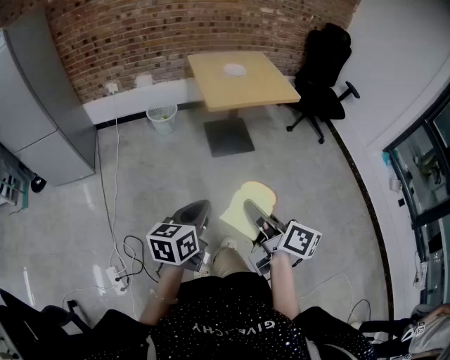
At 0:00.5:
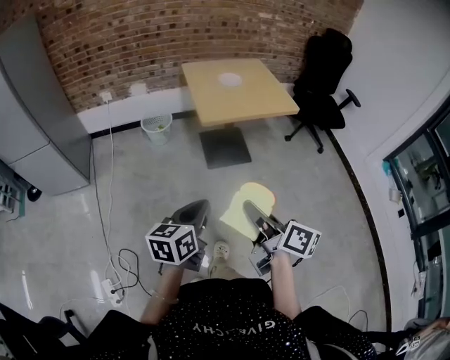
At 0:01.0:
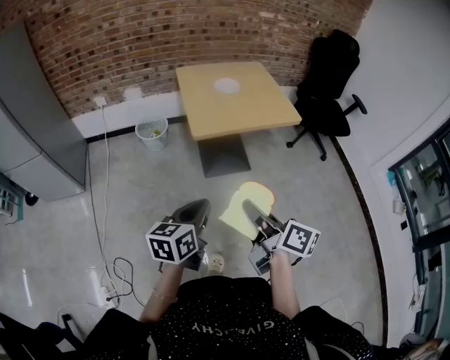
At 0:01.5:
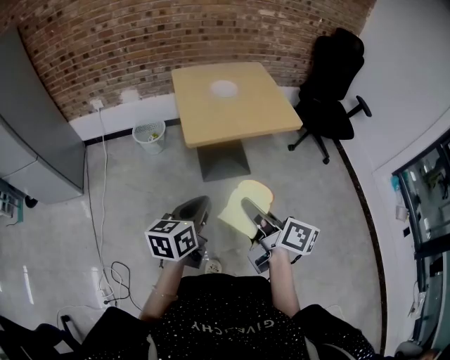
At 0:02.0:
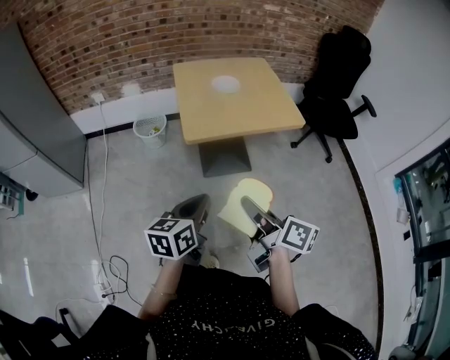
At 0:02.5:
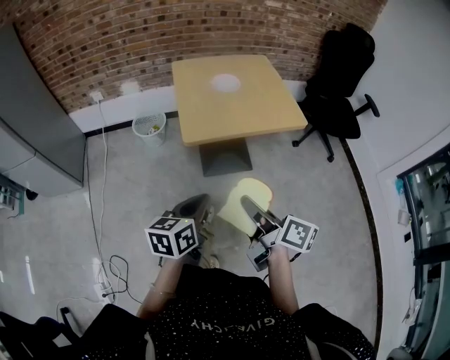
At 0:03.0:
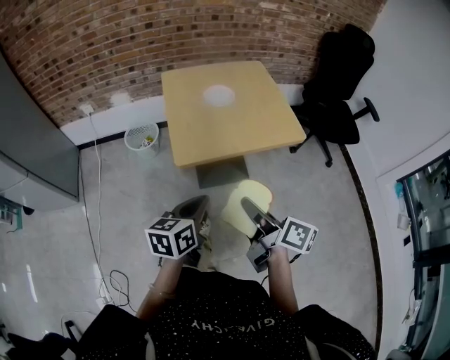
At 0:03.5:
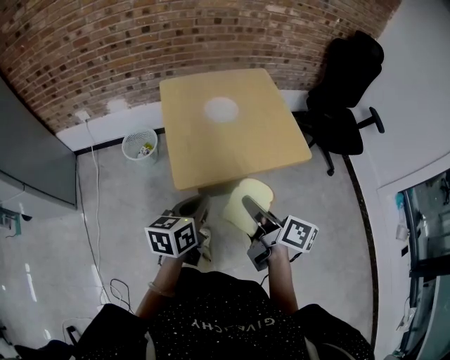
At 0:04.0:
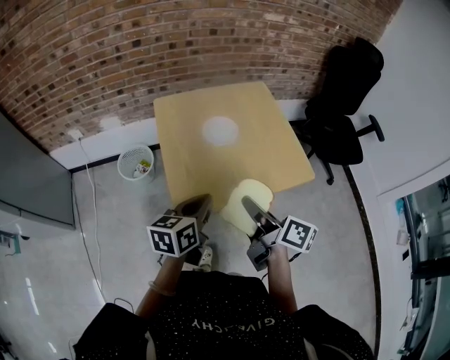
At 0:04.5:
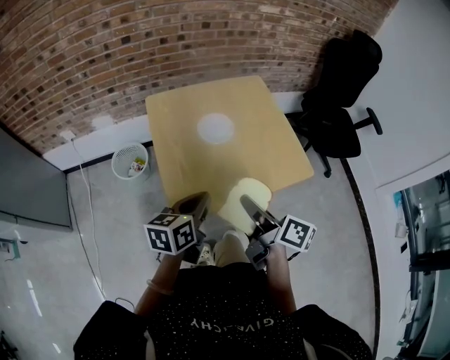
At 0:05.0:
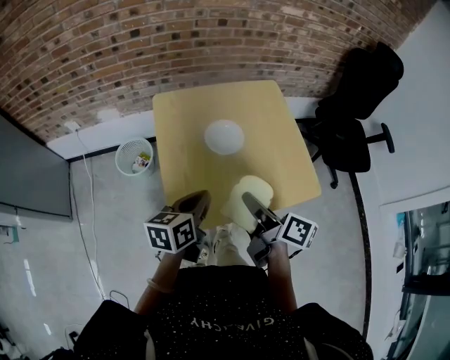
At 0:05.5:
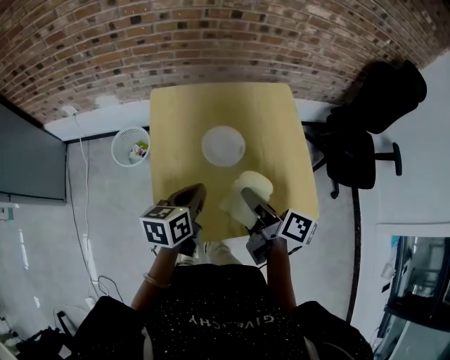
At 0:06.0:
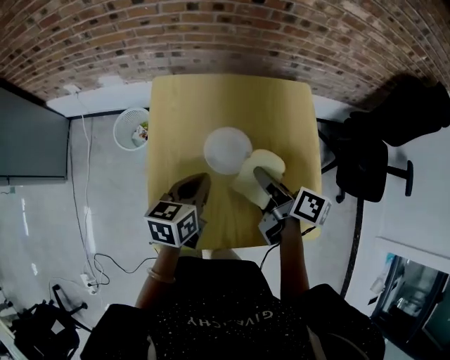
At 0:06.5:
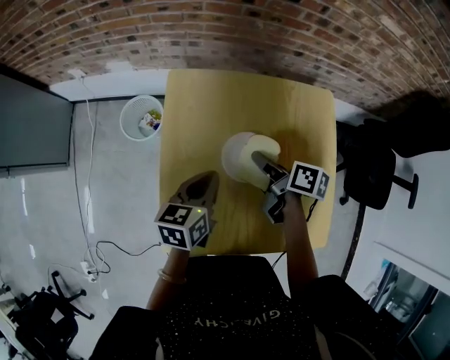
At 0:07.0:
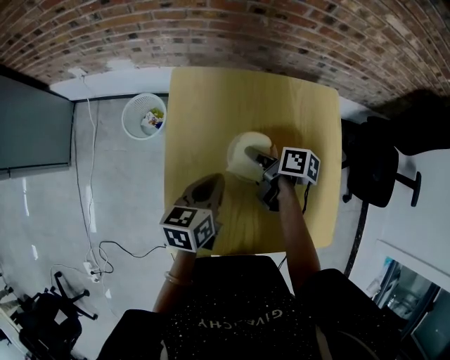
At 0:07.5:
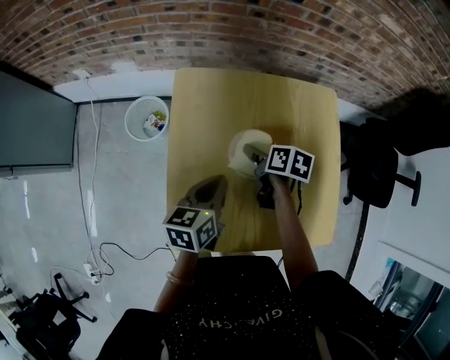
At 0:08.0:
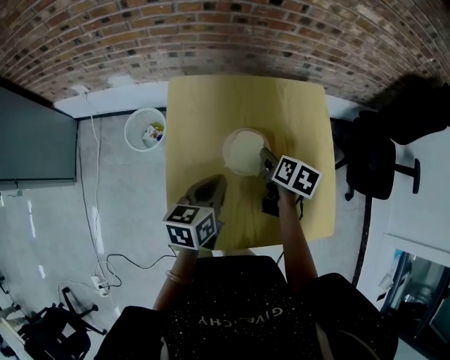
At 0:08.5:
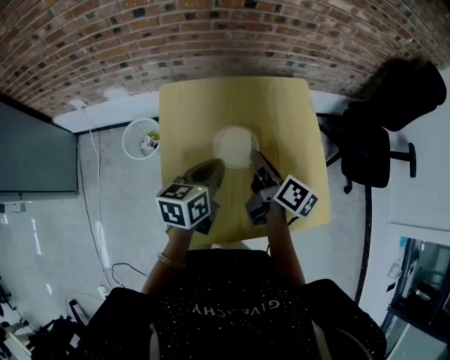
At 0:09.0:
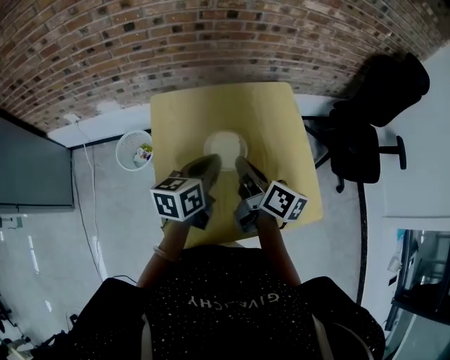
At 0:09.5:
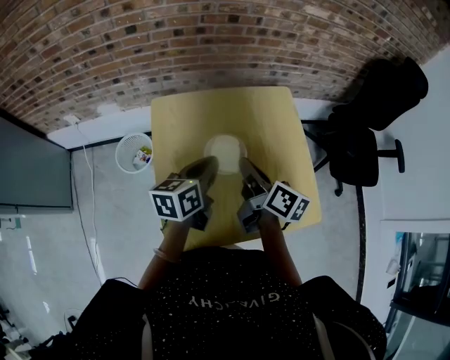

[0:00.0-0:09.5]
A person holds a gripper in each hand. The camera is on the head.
0:00.0 to 0:02.0: The two grippers go approximately 30 cm forward and to the right.
0:02.0 to 0:04.0: Both grippers move forward, roughly 35 cm.
0:04.0 to 0:05.5: Both grippers move forward, roughly 20 cm.
0:05.5 to 0:07.5: The right gripper moves forward and downward, approximately 25 cm, angles its fingers downward, by some 30 degrees, and opens its fingers, while the left gripper goes some 10 cm forward.
0:07.5 to 0:09.5: The left gripper heads upward, covering roughly 10 cm, while the right gripper heads upward and backward, covering about 20 cm, angles its fingers upward, by roughly 40 degrees, and closes.

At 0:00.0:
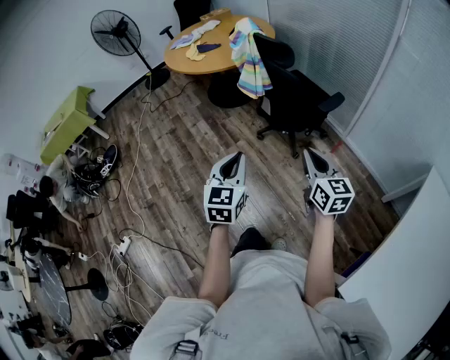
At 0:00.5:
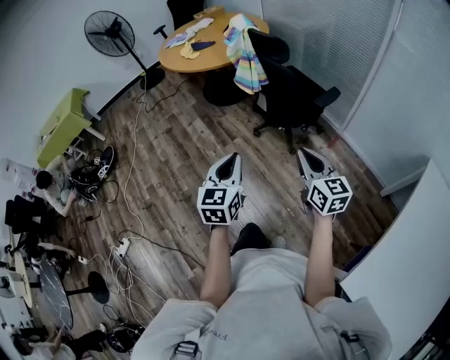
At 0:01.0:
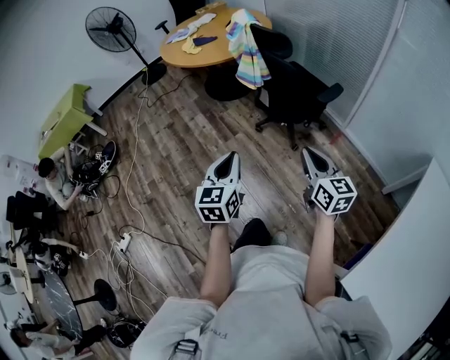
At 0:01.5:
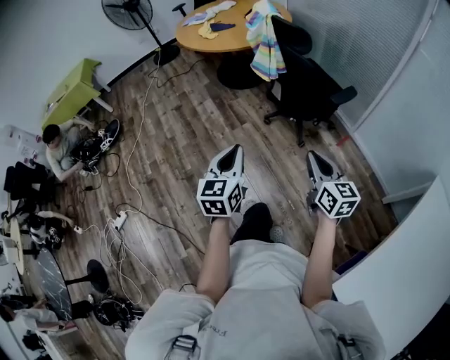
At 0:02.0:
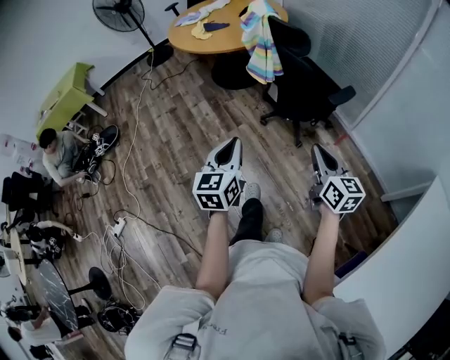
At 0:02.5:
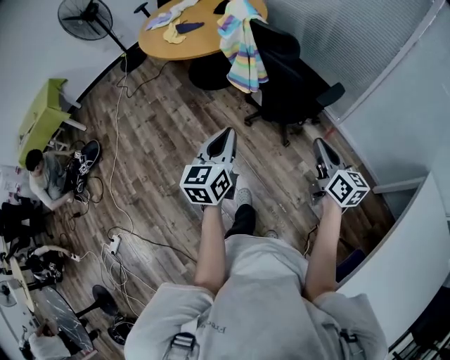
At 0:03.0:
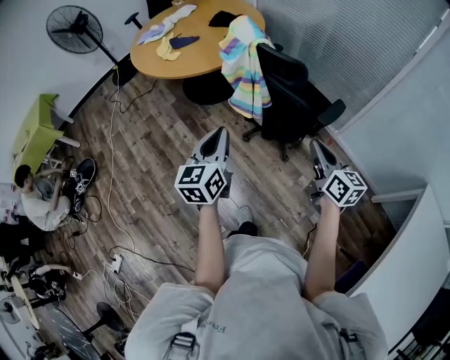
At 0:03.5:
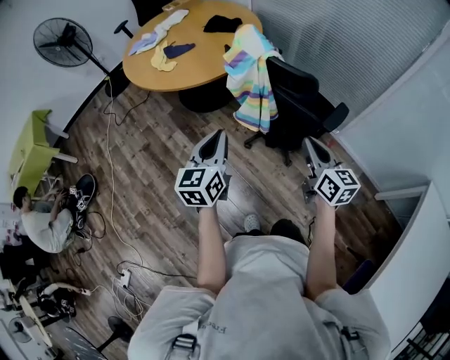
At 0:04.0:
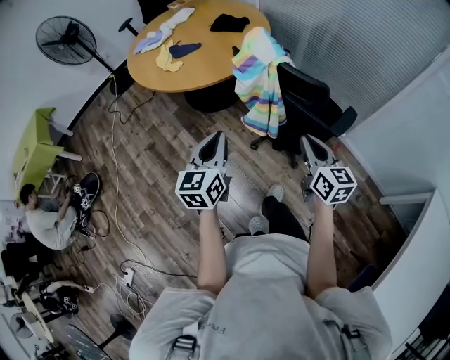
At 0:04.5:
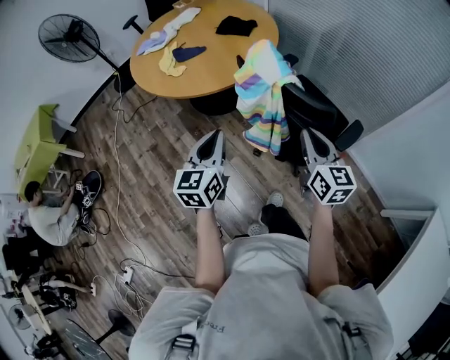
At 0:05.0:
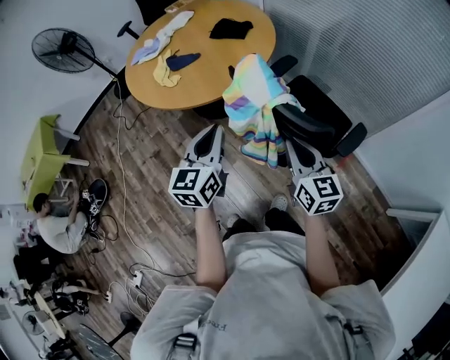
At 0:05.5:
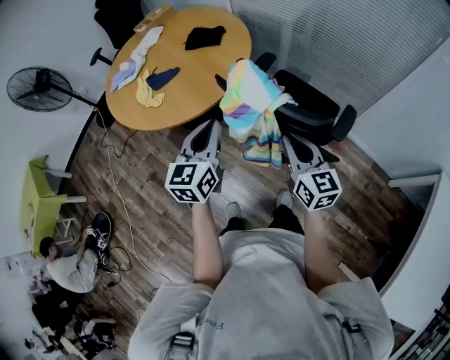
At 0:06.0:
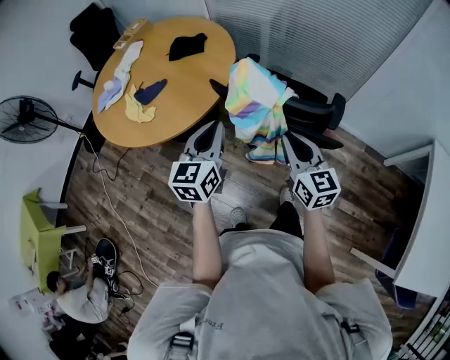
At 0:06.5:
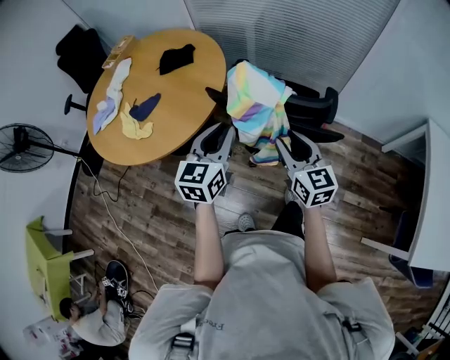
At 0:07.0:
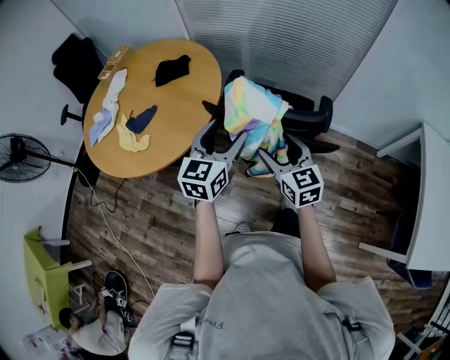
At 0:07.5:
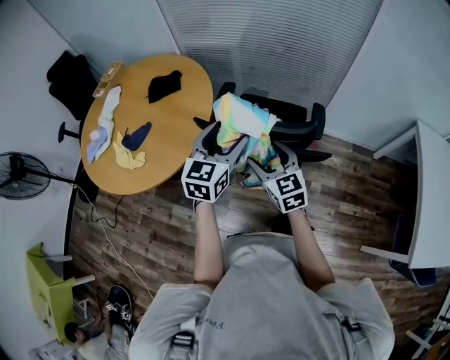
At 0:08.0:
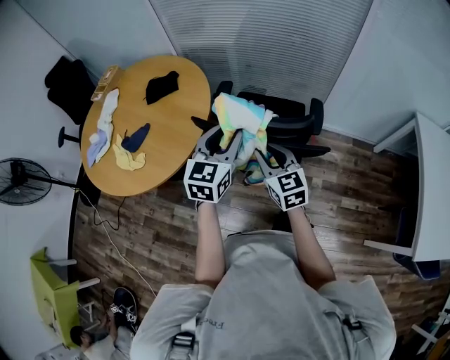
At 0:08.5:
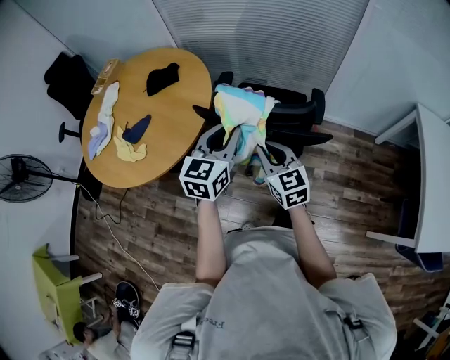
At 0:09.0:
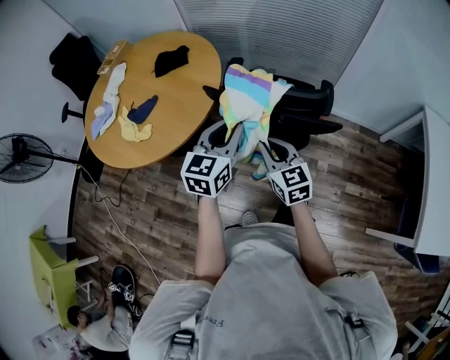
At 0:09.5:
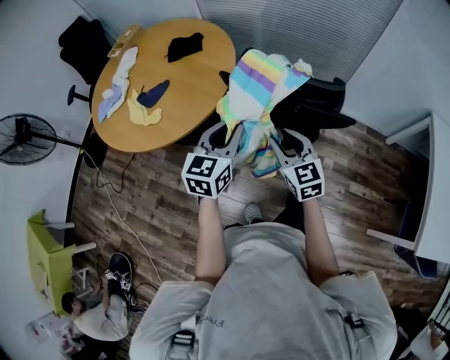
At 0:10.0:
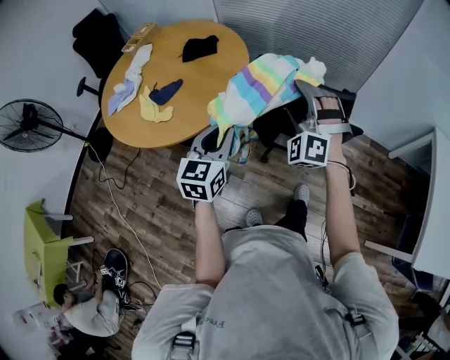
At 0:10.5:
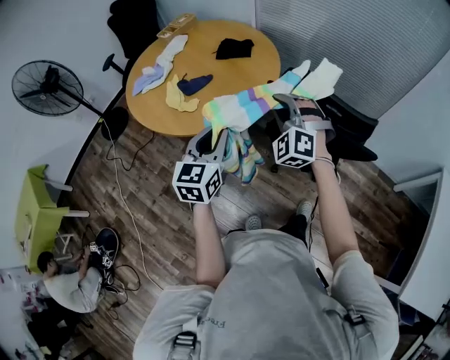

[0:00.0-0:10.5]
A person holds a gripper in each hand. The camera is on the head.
0:00.0 to 0:02.0: The left gripper changes place by roughly 5 cm.
0:02.0 to 0:04.0: Both grippers travel together forward, approximately 35 cm.
0:04.0 to 0:06.5: The right gripper changes place by some 15 cm, rotates about 20 degrees, and opens its fingers; the left gripper shifts by about 20 cm, and turns by some 40 degrees.
0:06.5 to 0:08.5: The left gripper heads to the right, covering approximately 5 cm, and opens, then closes once more. Meanwhile the right gripper opens and closes again.
0:08.5 to 0:10.5: The right gripper heads to the left and upward, covering roughly 20 cm, rotates around the line of its fingers by some 70 degrees, counterclockwise from behind, and opens, then closes once more, while the left gripper heads to the left and backward, covering some 25 cm, and rotates some 30 degrees.

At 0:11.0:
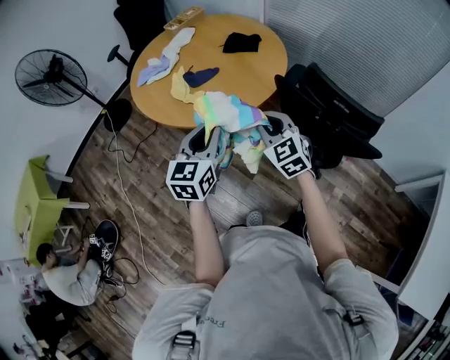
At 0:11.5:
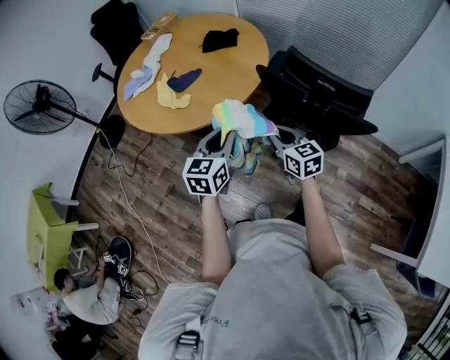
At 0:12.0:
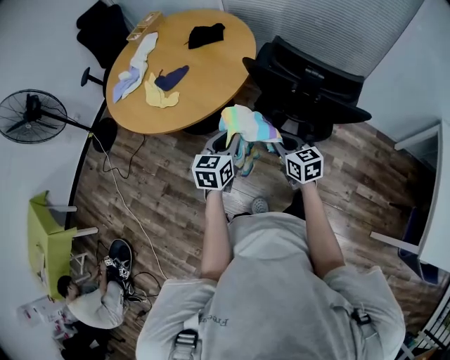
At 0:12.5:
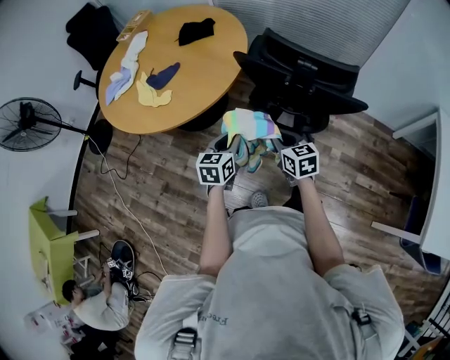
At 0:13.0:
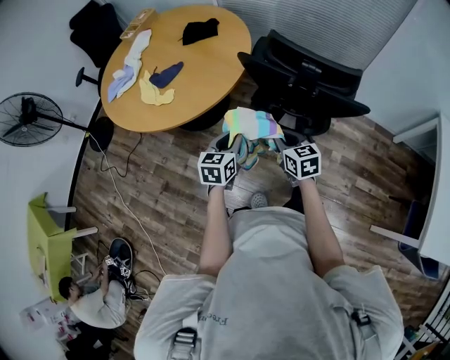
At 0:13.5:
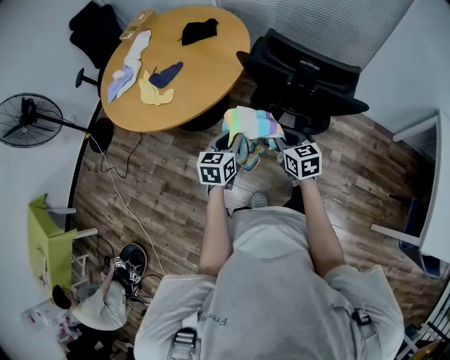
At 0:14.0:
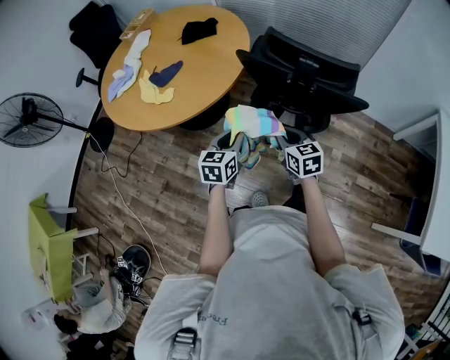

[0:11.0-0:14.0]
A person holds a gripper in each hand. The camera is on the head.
0:11.0 to 0:12.5: The left gripper heads downward and to the right, covering approximately 25 cm, and turns by some 30 degrees; the right gripper heads downward, to the right and backward, covering approximately 20 cm, and rotates around the line of its fingers by some 40 degrees, clockwise from behind.
0:12.5 to 0:14.0: The grippers stay close to where they were, moving slightly.

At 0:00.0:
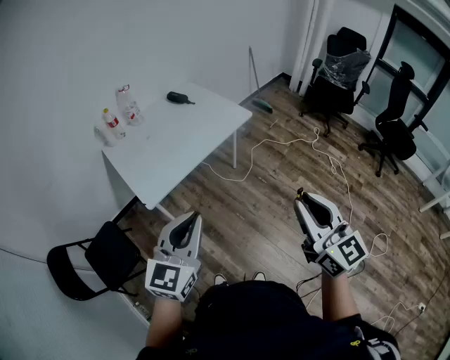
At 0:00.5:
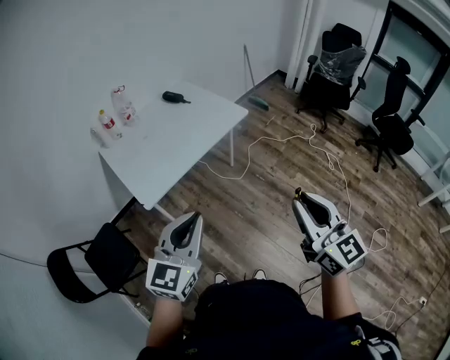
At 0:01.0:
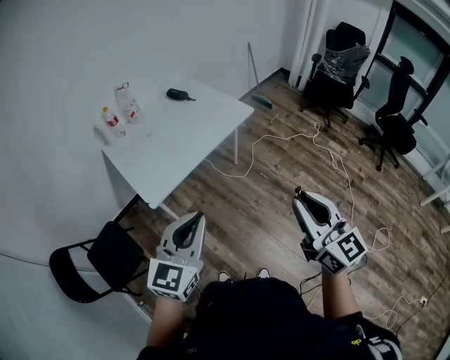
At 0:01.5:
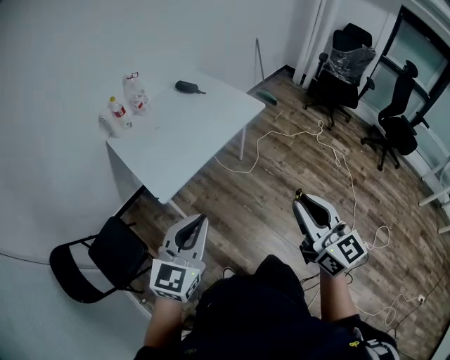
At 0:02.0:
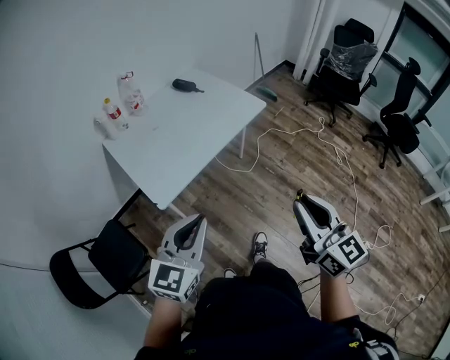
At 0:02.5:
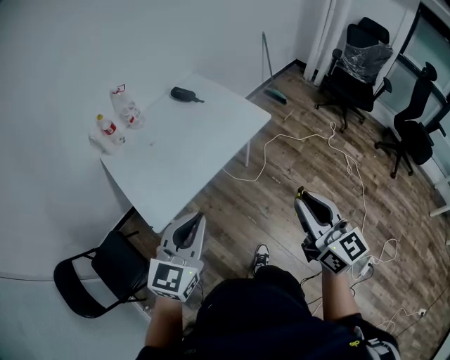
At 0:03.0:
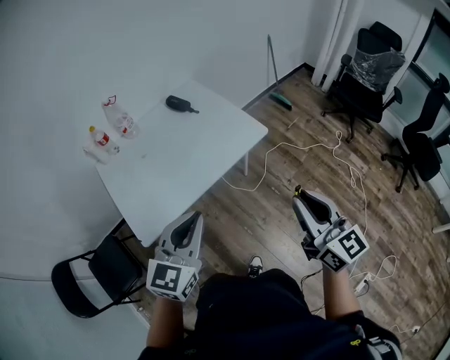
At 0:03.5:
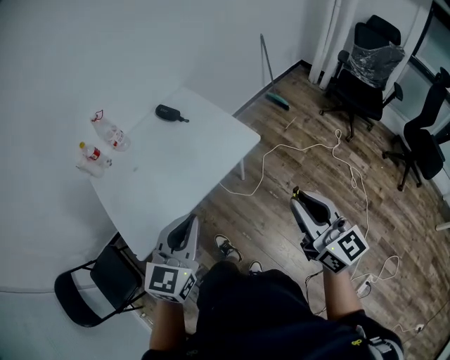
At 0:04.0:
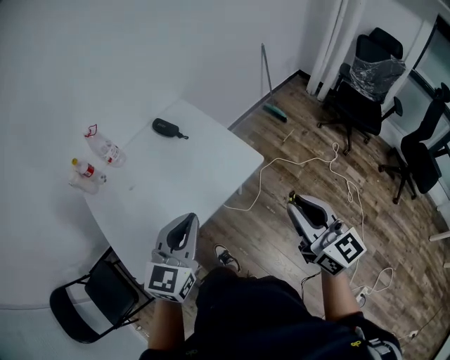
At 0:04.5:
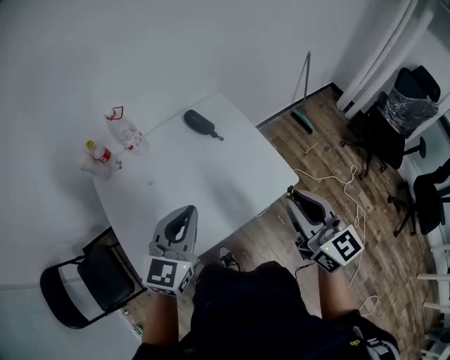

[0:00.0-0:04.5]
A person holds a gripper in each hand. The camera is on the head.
0:00.0 to 0:02.0: The grippers stay close to where they were, moving slightly.
0:02.0 to 0:04.5: The left gripper is displaced backward by some 5 cm.
